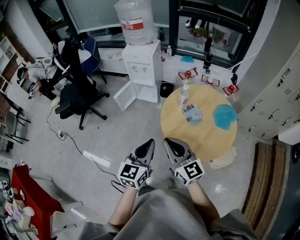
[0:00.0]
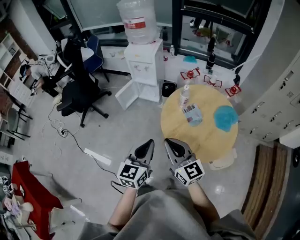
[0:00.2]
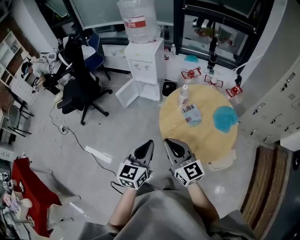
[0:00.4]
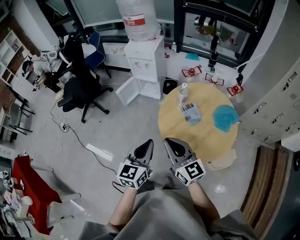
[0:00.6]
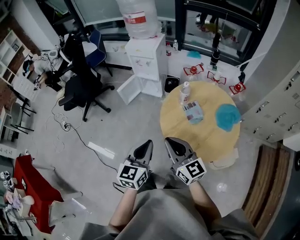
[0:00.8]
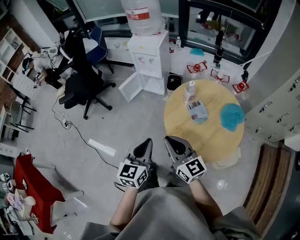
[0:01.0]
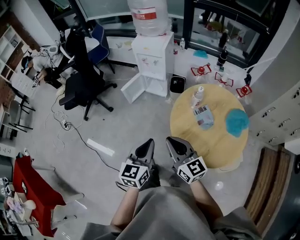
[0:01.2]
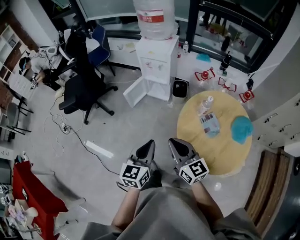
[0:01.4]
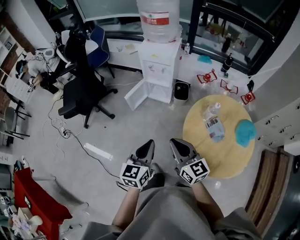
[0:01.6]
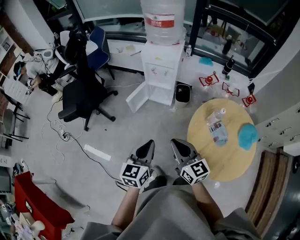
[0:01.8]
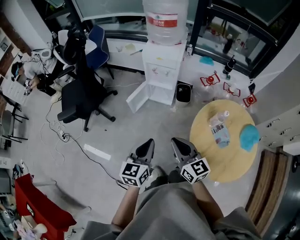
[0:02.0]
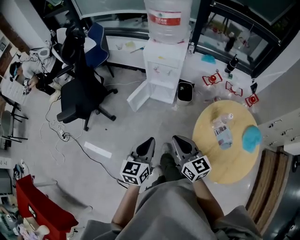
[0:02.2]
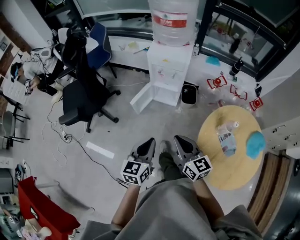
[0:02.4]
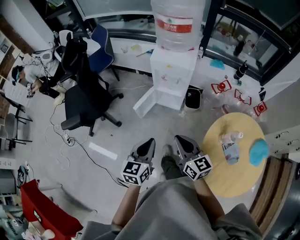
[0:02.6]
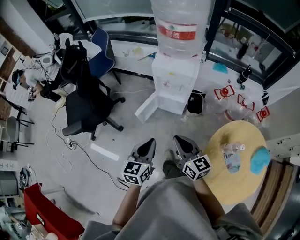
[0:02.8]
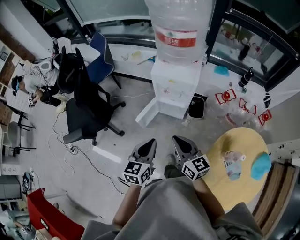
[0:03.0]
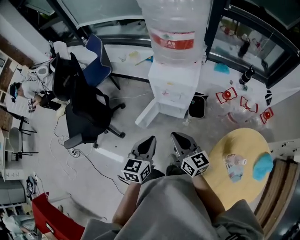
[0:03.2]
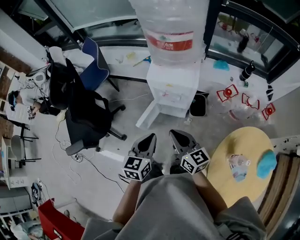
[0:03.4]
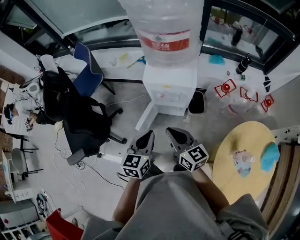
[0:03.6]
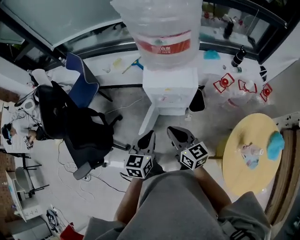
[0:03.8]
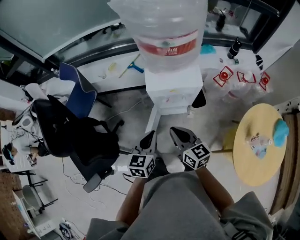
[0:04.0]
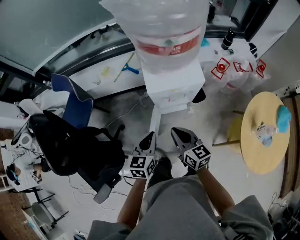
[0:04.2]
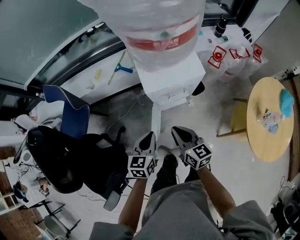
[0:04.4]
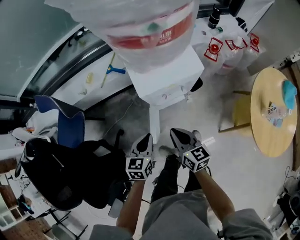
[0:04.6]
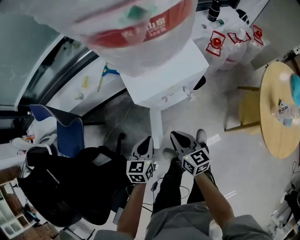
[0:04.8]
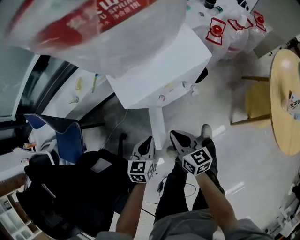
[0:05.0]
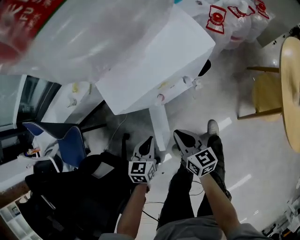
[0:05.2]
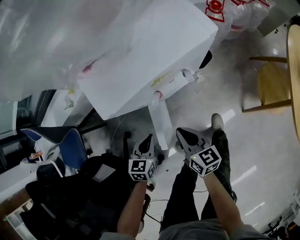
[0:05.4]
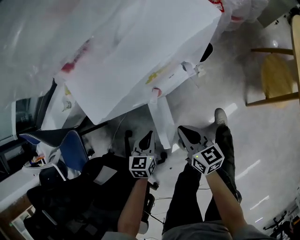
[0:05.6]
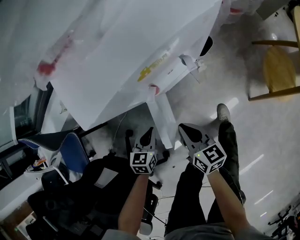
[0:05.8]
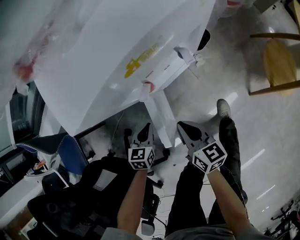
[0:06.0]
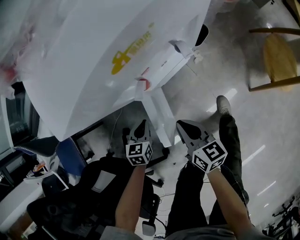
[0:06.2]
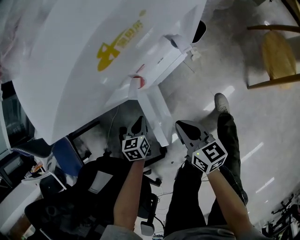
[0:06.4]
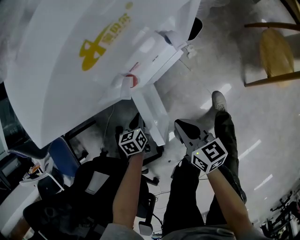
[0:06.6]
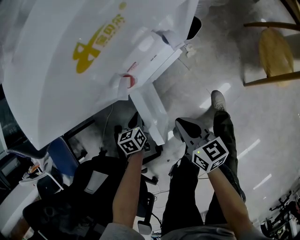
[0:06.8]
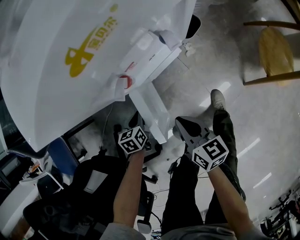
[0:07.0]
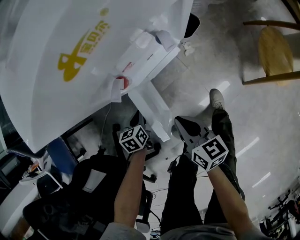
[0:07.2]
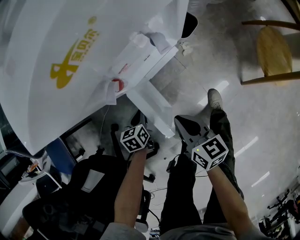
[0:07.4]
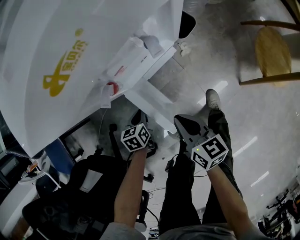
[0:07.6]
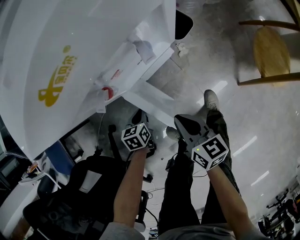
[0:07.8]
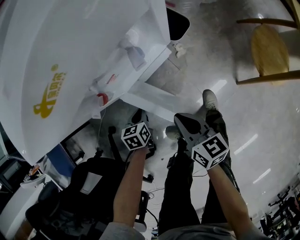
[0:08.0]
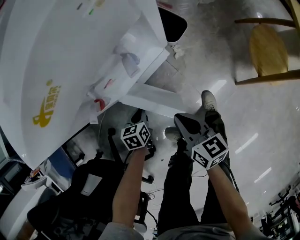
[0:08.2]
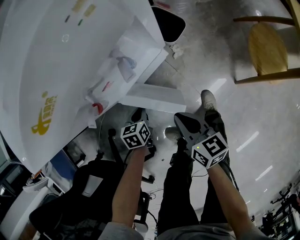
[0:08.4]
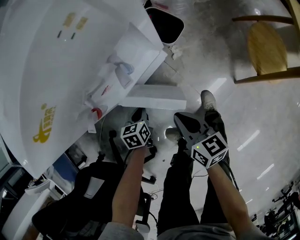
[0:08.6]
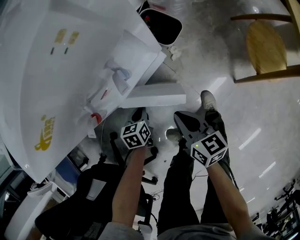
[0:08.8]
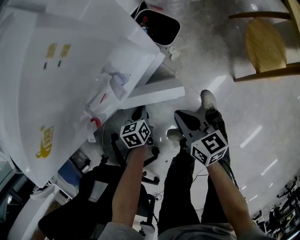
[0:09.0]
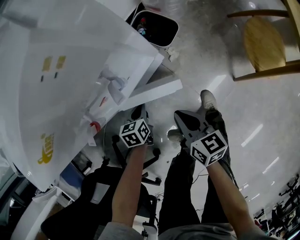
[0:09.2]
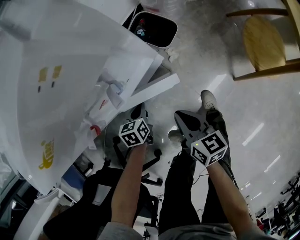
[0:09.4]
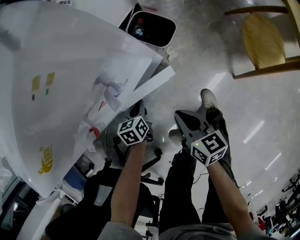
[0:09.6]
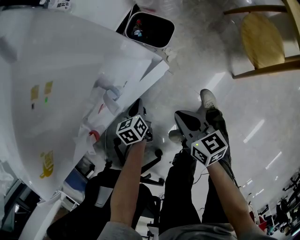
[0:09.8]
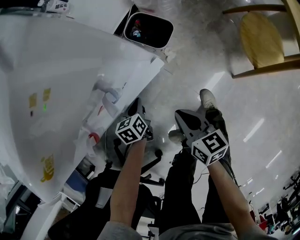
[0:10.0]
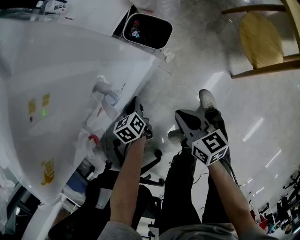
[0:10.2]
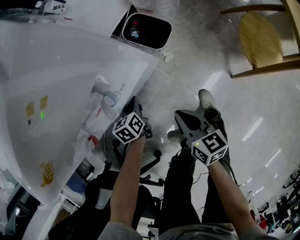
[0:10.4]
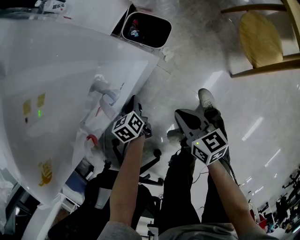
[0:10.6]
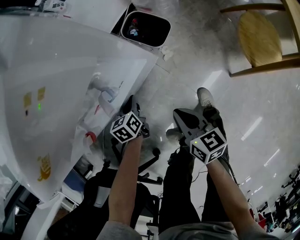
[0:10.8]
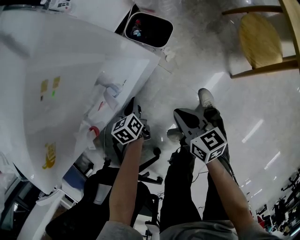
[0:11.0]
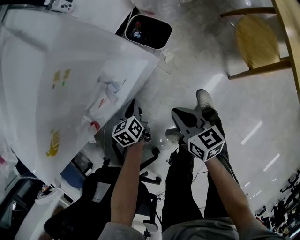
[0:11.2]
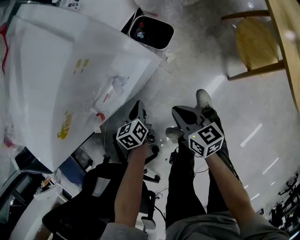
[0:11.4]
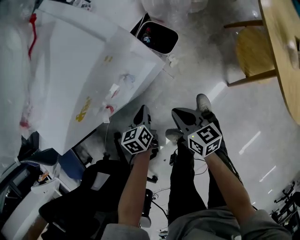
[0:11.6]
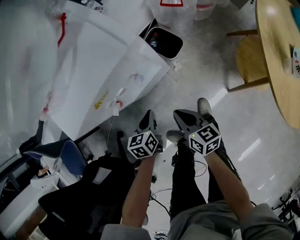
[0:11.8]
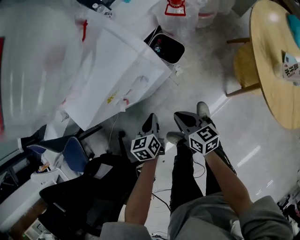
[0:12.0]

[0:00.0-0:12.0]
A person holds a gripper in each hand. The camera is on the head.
0:00.0 to 0:01.6: The two grippers go roughly 20 cm forward and to the left.
0:01.6 to 0:03.0: The two grippers go about 30 cm forward.
0:03.0 to 0:04.4: The left gripper shifts by some 30 cm, and changes its angle by approximately 30 degrees, while the right gripper shifts by some 25 cm, and swivels about 30 degrees.
0:04.4 to 0:06.0: Both grippers move downward, some 35 cm. The left gripper rotates roughly 30 degrees. The right gripper turns by about 20 degrees.
0:06.0 to 0:07.6: The left gripper travels downward by some 10 cm, and turns by roughly 20 degrees. Meanwhile the right gripper moves to the right, some 5 cm.
0:07.6 to 0:09.0: The left gripper goes some 10 cm to the right and forward; the right gripper moves to the right, roughly 5 cm.
0:09.0 to 0:10.4: The left gripper travels forward by approximately 5 cm.
0:10.4 to 0:12.0: The left gripper is displaced upward by about 25 cm, while the right gripper travels upward by about 15 cm.

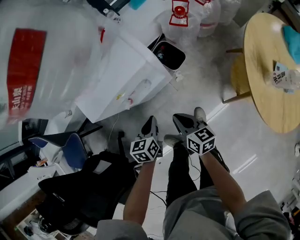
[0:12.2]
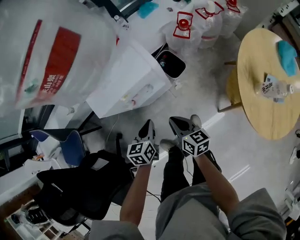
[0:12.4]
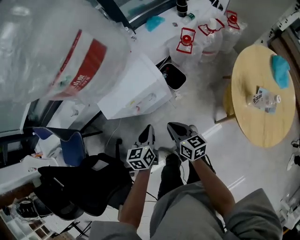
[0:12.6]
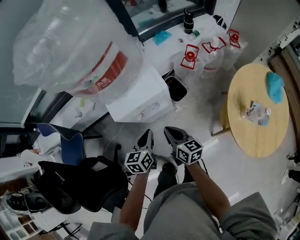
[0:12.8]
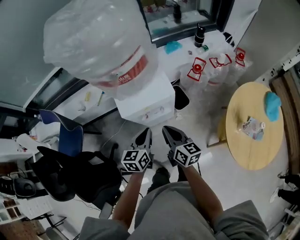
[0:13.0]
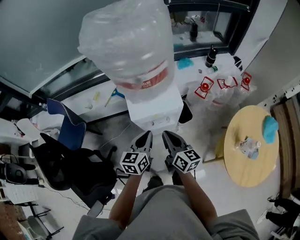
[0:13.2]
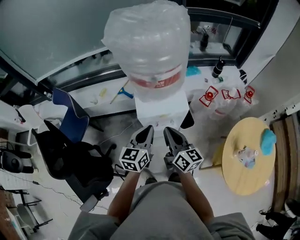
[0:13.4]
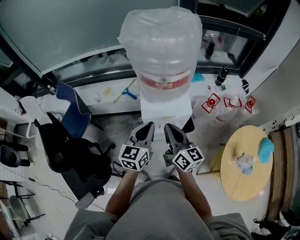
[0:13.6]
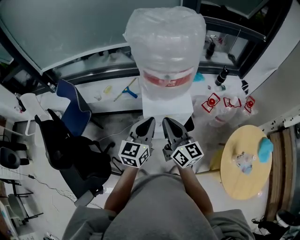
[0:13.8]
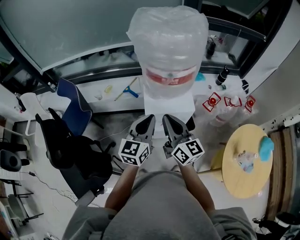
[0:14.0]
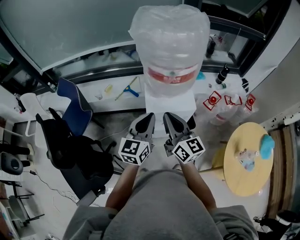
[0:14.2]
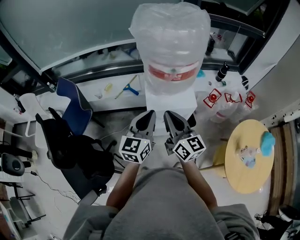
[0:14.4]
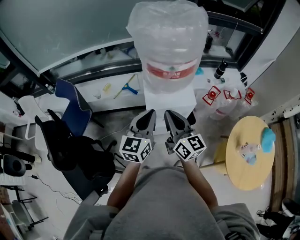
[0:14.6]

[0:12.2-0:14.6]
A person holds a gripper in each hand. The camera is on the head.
0:12.2 to 0:13.4: The two grippers go some 35 cm upward. The left gripper rotates some 30 degrees; the right gripper turns by some 30 degrees.
0:13.4 to 0:14.6: Both grippers move upward and to the left, some 10 cm.

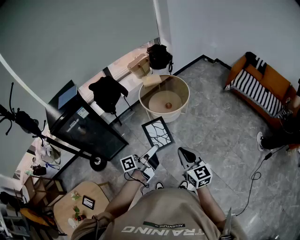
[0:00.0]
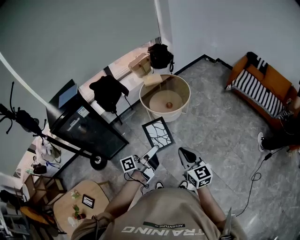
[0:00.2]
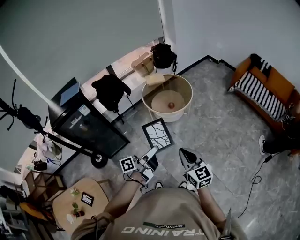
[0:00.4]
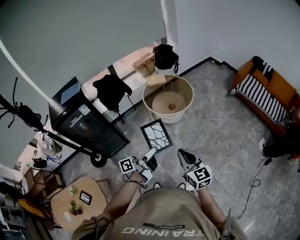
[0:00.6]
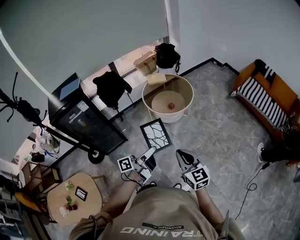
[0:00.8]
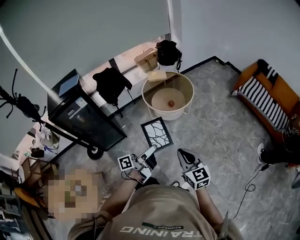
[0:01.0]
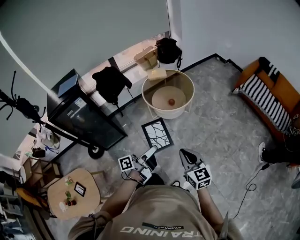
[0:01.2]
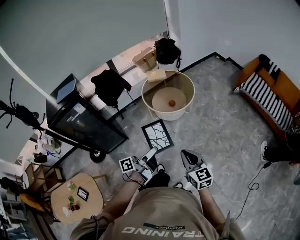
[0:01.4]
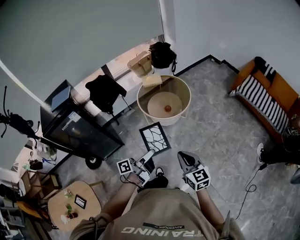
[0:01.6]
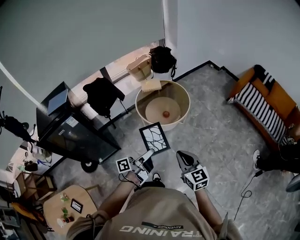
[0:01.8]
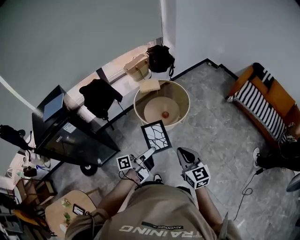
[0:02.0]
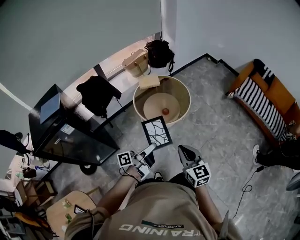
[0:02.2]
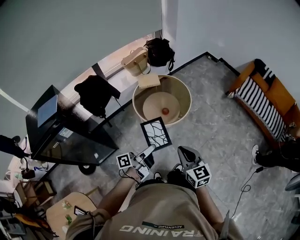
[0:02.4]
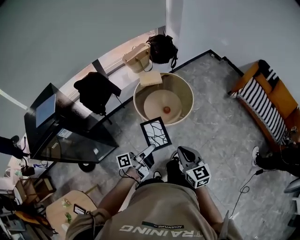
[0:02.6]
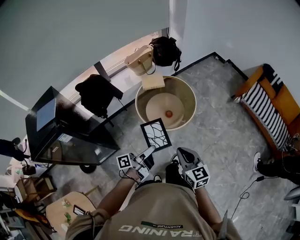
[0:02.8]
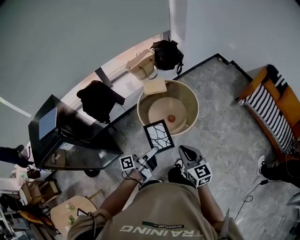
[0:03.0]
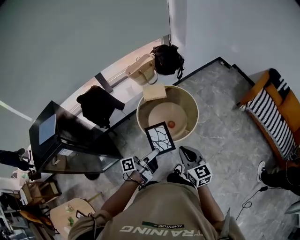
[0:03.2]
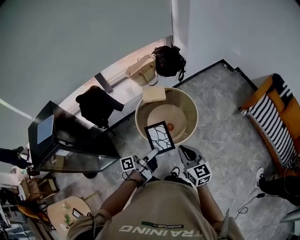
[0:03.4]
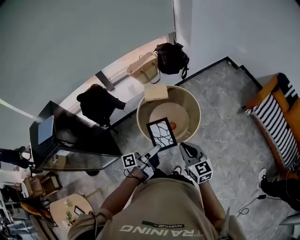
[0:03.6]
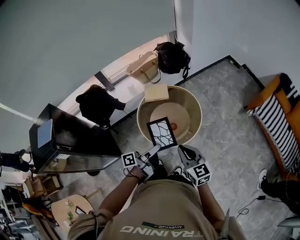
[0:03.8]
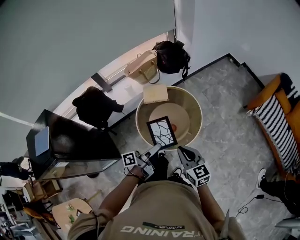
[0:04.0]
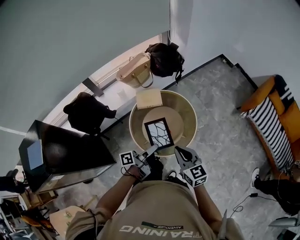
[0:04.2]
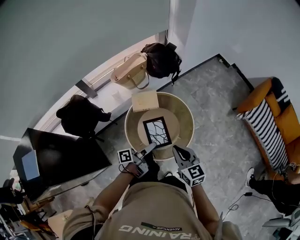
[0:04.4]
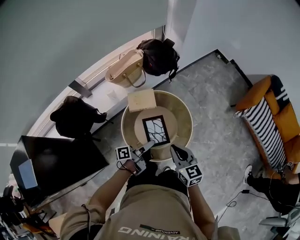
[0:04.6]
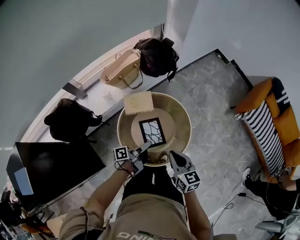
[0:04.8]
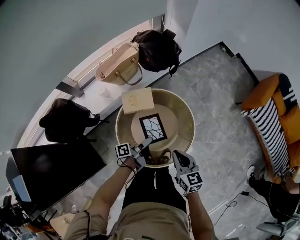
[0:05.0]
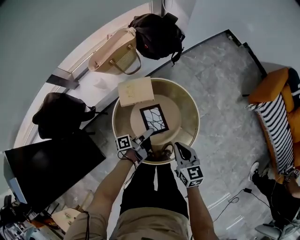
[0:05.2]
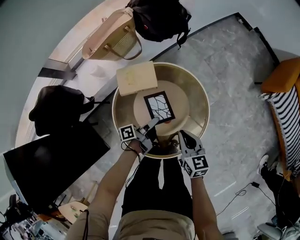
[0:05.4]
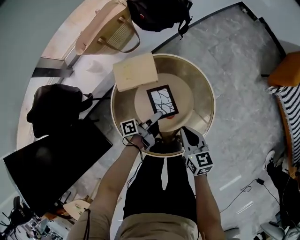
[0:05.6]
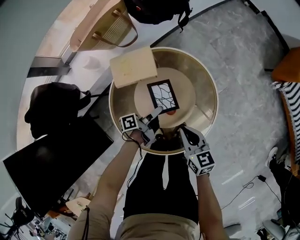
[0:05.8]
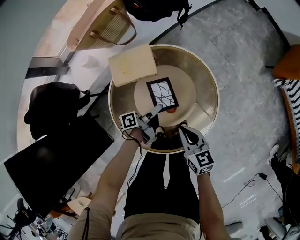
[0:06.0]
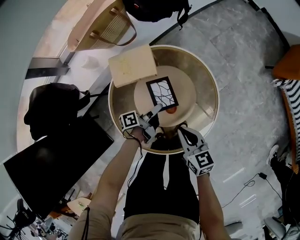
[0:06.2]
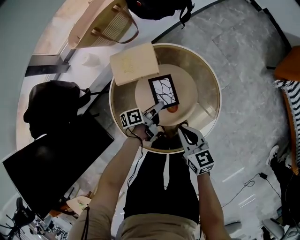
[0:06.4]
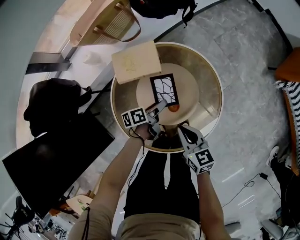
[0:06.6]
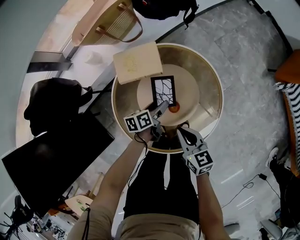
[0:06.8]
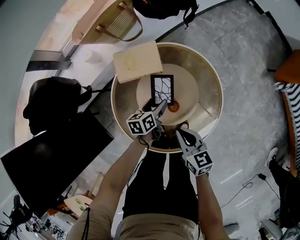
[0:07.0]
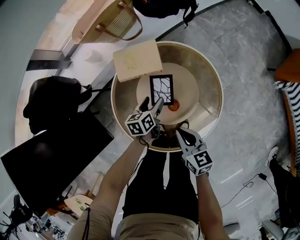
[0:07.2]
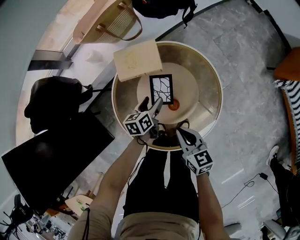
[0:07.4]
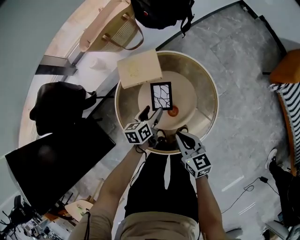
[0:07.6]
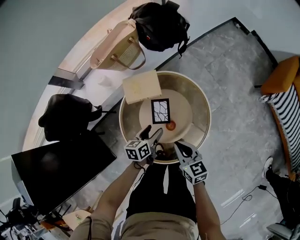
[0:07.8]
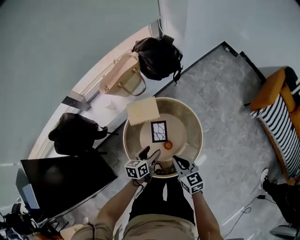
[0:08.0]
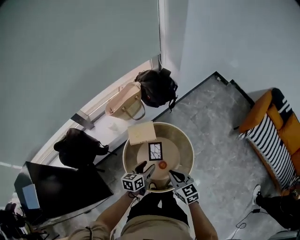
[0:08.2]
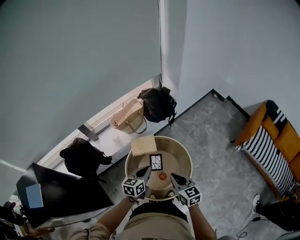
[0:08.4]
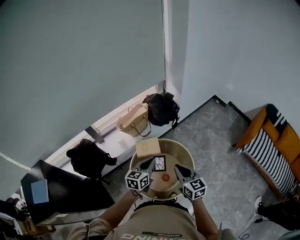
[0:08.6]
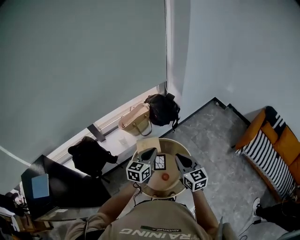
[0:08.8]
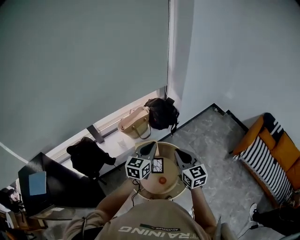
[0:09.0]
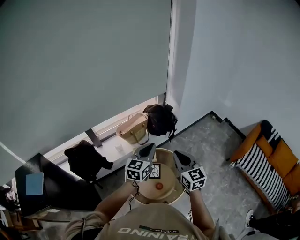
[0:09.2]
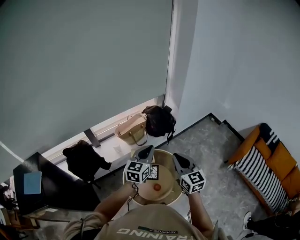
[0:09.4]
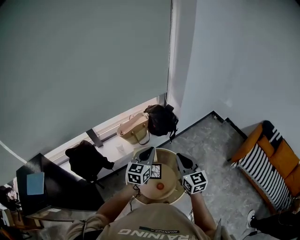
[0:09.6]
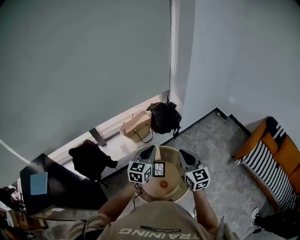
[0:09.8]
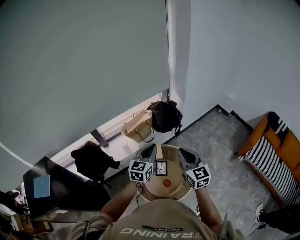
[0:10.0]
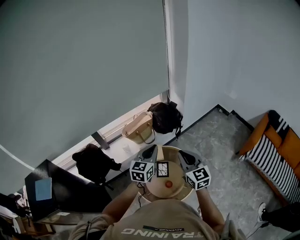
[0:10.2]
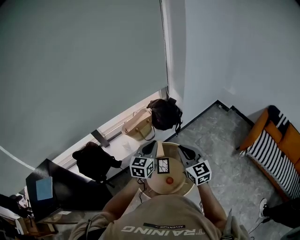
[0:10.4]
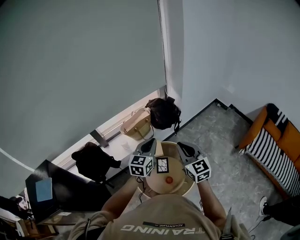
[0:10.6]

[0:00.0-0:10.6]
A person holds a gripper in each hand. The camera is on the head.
0:00.0 to 0:01.6: The right gripper moves forward and to the right, some 10 cm. Meanwhile the left gripper moves forward, about 10 cm.
0:01.6 to 0:03.0: The grippers both shift forward by some 25 cm.
0:03.0 to 0:04.6: Both grippers travel together forward, approximately 30 cm.
0:04.6 to 0:06.0: The two grippers go roughly 35 cm downward.
0:06.0 to 0:07.6: The left gripper changes place by approximately 5 cm, rotates around the line of its fingers by approximately 40 degrees, clockwise from behind, and opens its fingers.
0:07.6 to 0:09.0: Both grippers travel together upward, roughly 50 cm. The right gripper turns by roughly 30 degrees. The left gripper turns by roughly 50 degrees, and closes.
0:09.0 to 0:10.6: The grippers stay close to where they were, moving slightly.
